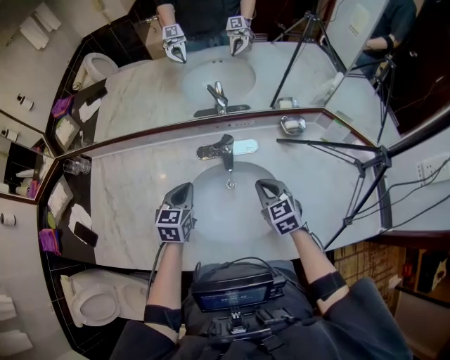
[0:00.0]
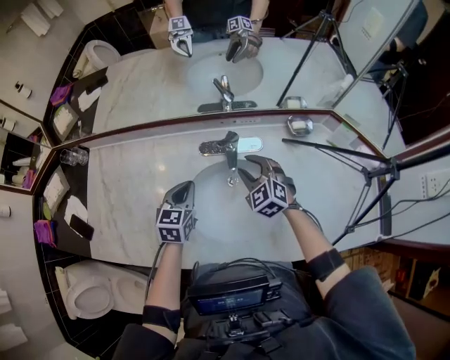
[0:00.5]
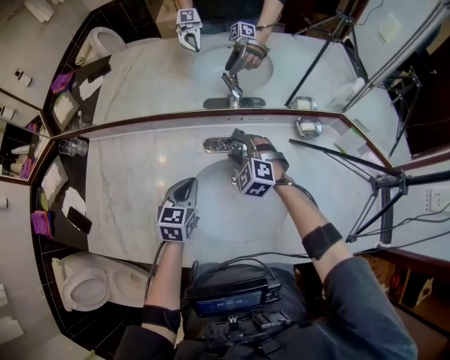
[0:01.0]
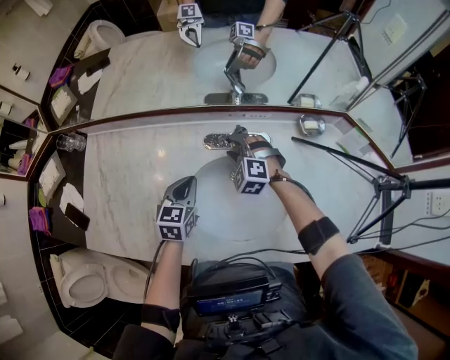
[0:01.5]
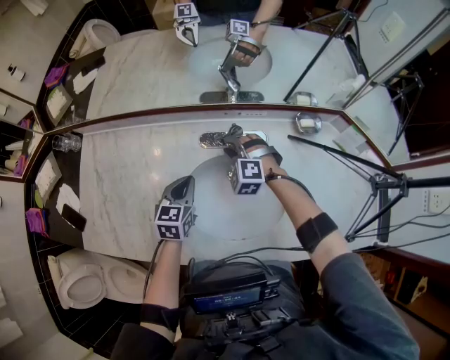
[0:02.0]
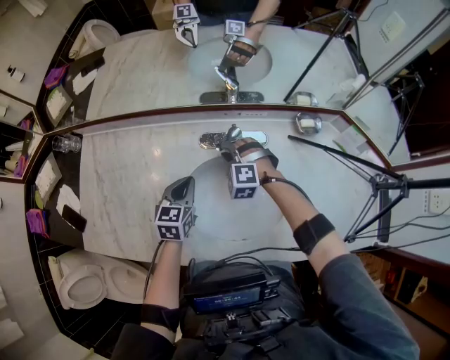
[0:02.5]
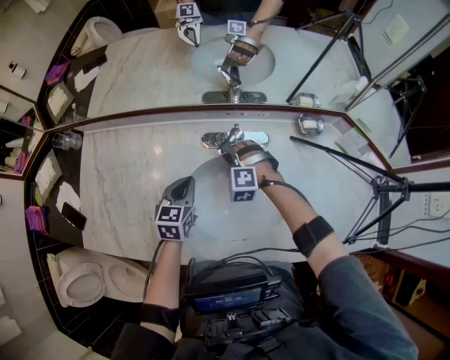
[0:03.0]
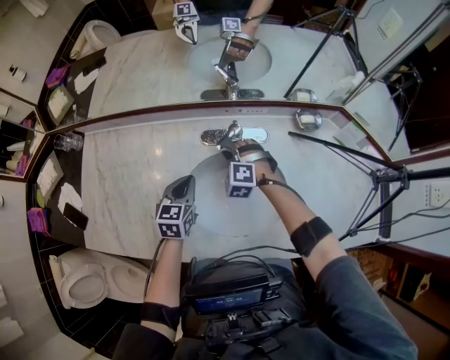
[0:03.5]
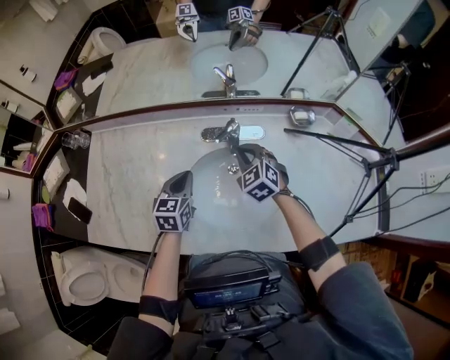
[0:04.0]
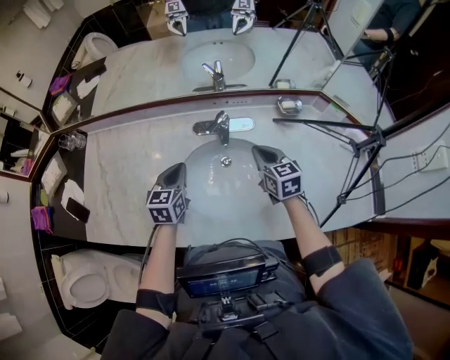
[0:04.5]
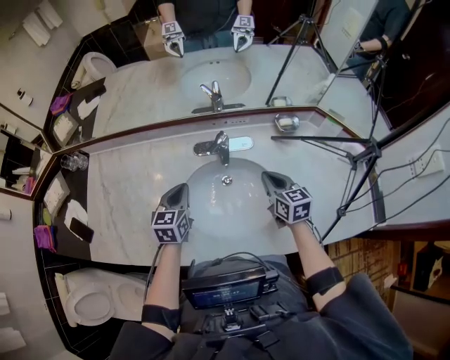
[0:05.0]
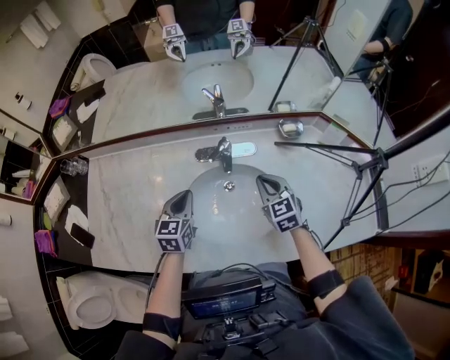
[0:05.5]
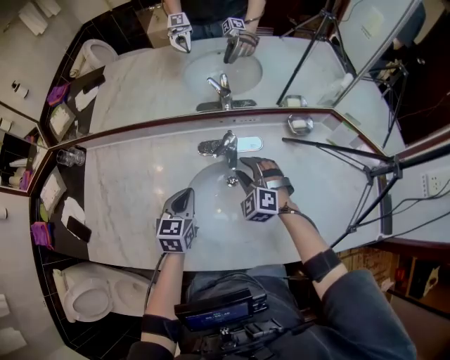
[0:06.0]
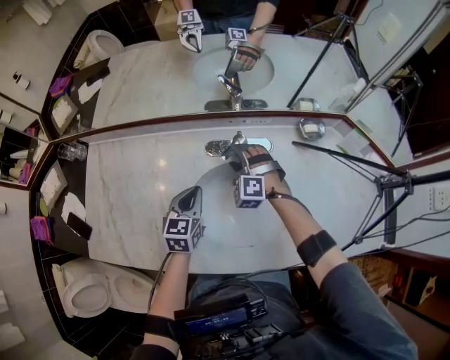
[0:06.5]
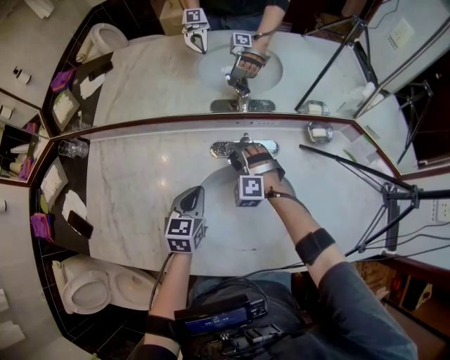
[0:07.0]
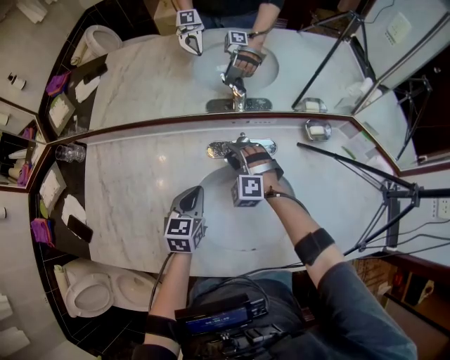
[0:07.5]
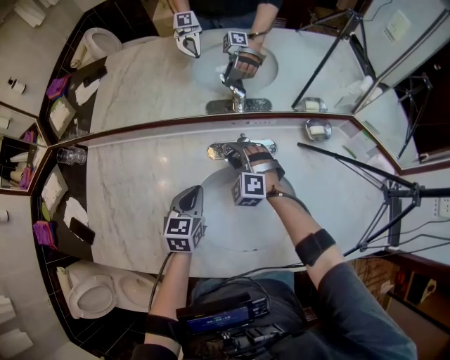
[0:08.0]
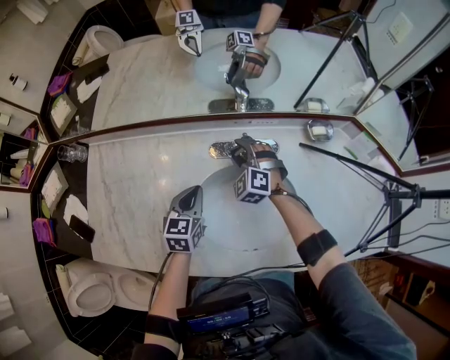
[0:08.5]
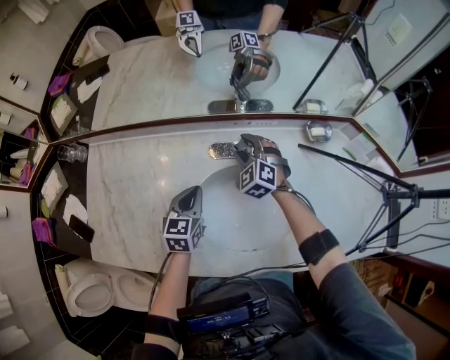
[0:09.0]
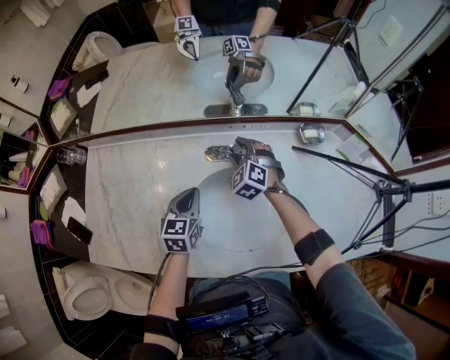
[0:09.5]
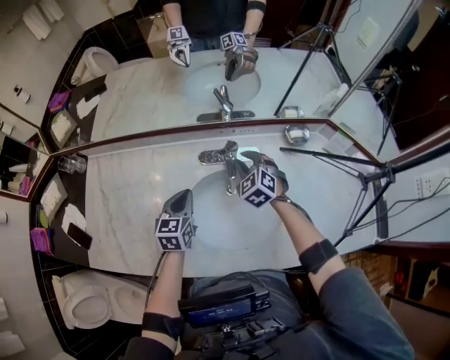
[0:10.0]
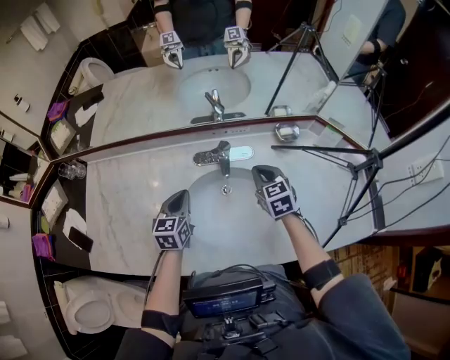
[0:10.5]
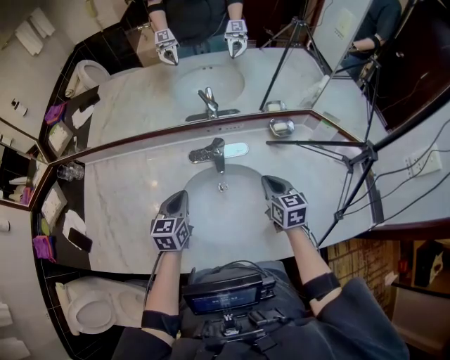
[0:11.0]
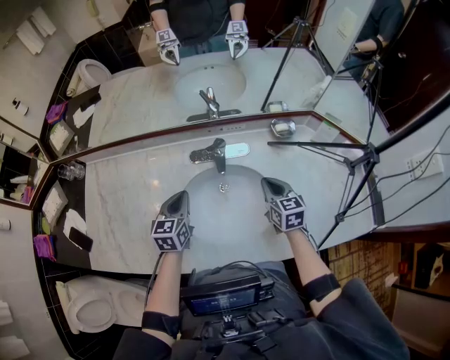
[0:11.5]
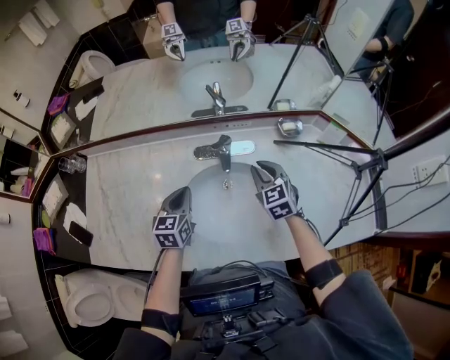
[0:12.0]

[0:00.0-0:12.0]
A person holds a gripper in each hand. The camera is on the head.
0:00.0 to 0:02.0: The right gripper is displaced forward and to the left by roughly 20 cm, rolls counterclockwise, seen from behind, by some 60 degrees, and opens.
0:02.0 to 0:04.0: The right gripper heads backward and upward, covering about 10 cm, turns by some 40 degrees, and closes up.
0:04.0 to 0:06.0: The right gripper goes to the right and returns, about 10 cm each way, turns by about 20 degrees, and opens its fingers.
0:06.0 to 0:08.0: The right gripper goes roughly 10 cm forward and to the left; the left gripper moves roughly 5 cm.
0:08.0 to 0:10.0: The right gripper shifts about 10 cm to the right and upward, turns by approximately 30 degrees, and closes.
0:10.0 to 0:12.0: The right gripper travels to the right and backward by roughly 10 cm, and turns by roughly 20 degrees.

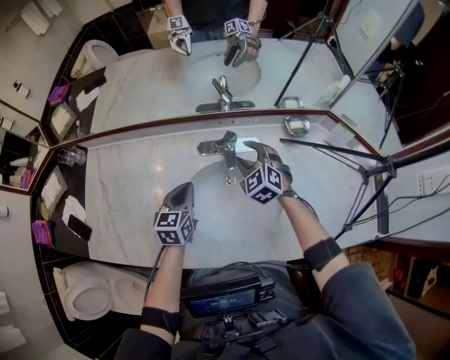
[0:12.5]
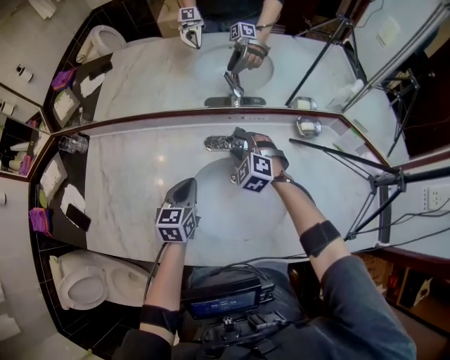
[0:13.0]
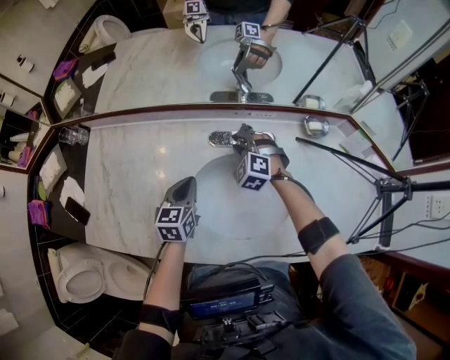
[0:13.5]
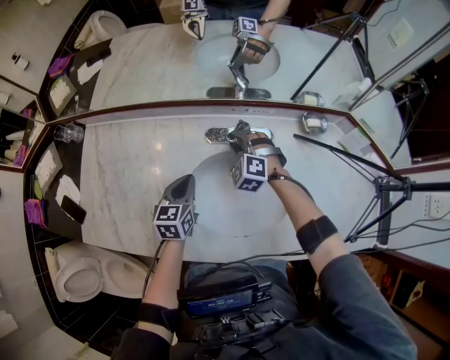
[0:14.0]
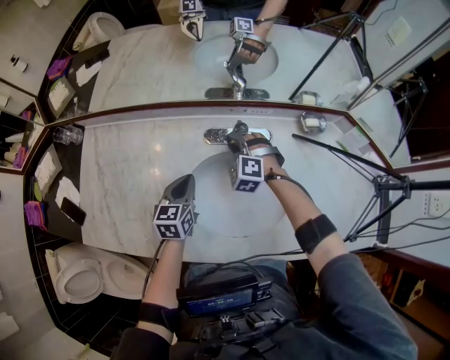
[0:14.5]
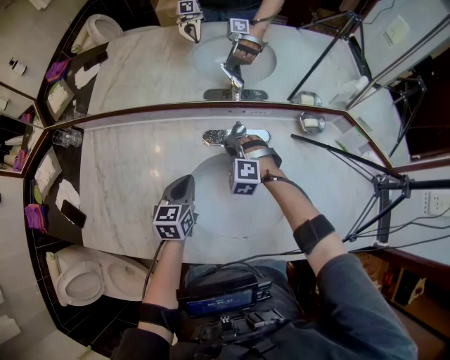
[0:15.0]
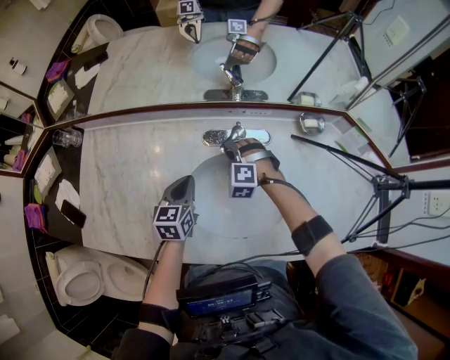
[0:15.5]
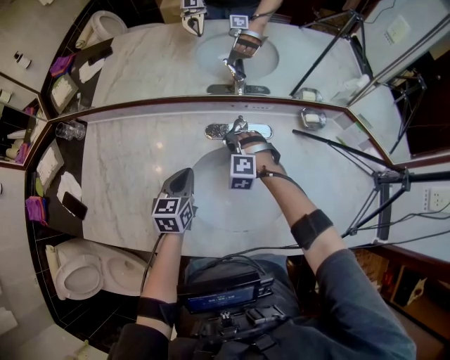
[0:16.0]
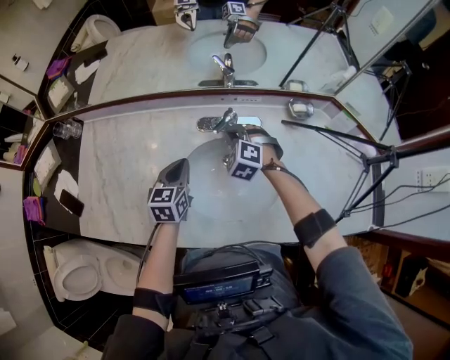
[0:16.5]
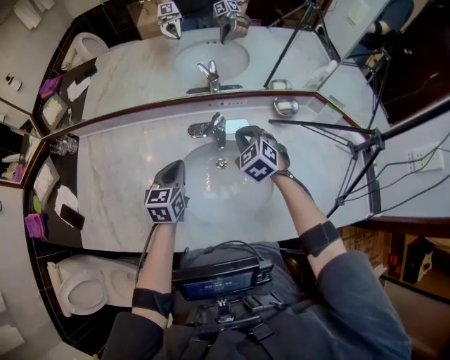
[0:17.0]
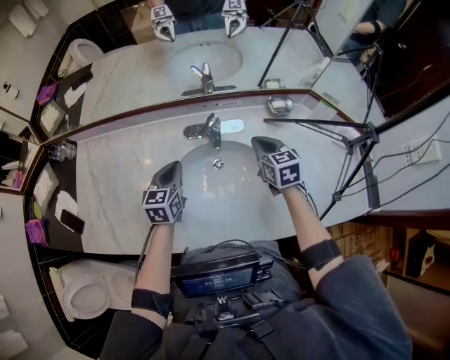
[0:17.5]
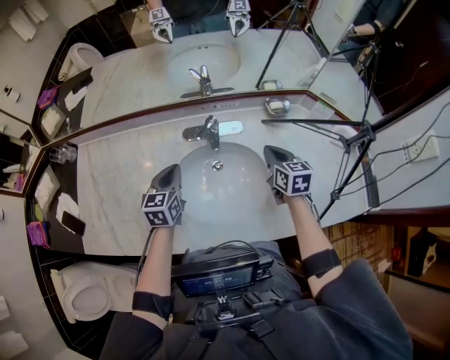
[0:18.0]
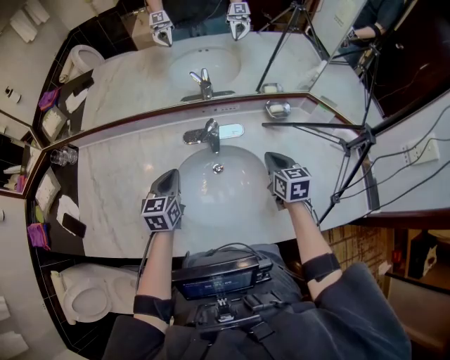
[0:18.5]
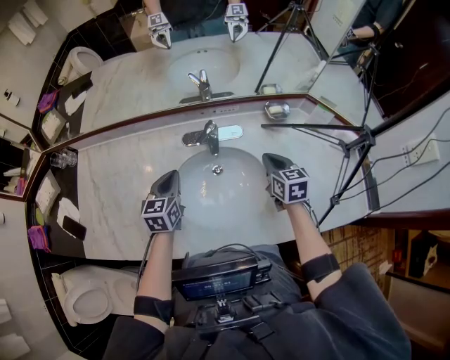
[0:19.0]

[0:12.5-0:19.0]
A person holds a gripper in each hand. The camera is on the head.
0:12.5 to 0:14.5: The right gripper heads downward and to the left, covering some 10 cm, changes its angle by some 30 degrees, and closes up.
0:14.5 to 0:17.0: The left gripper ends up about 5 cm from where it was. The right gripper travels to the right, upward and backward by some 15 cm, rotates approximately 30 degrees, and closes up.
0:17.0 to 0:19.0: The right gripper moves to the right and backward, approximately 15 cm, and rotates around the line of its fingers by approximately 50 degrees, clockwise from behind.

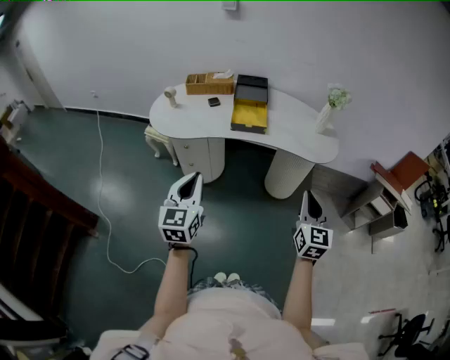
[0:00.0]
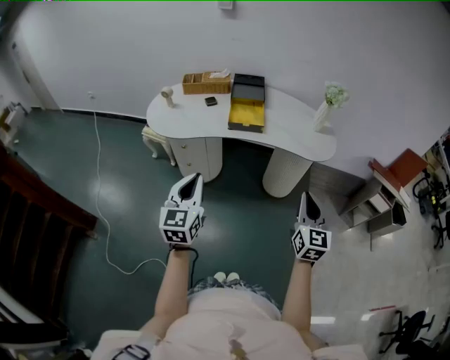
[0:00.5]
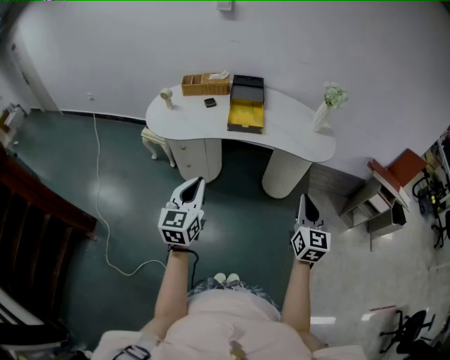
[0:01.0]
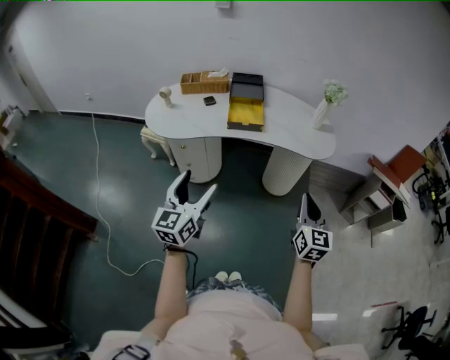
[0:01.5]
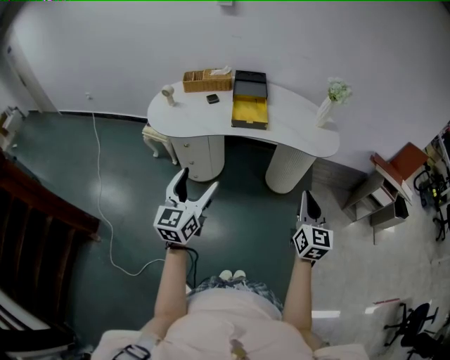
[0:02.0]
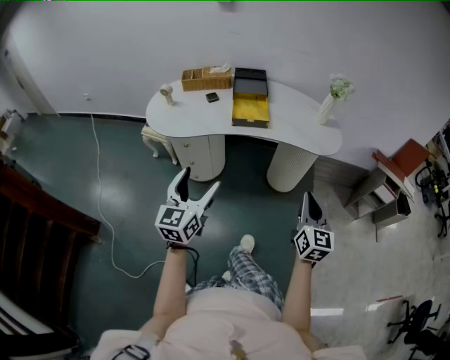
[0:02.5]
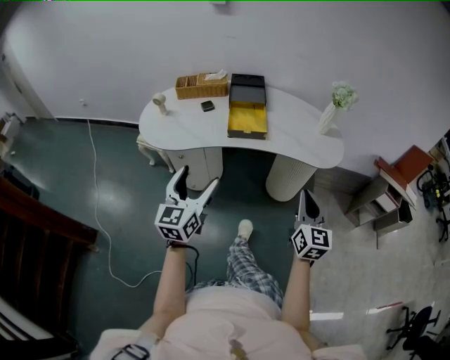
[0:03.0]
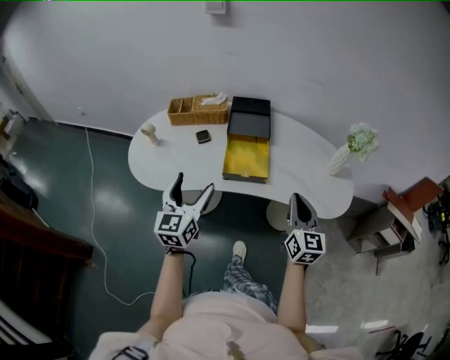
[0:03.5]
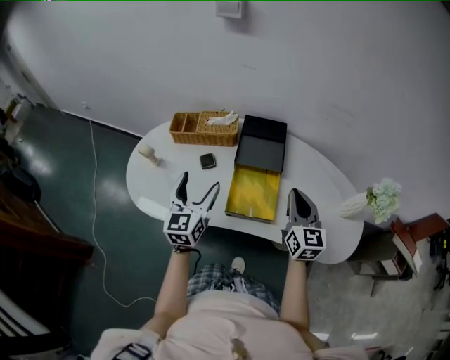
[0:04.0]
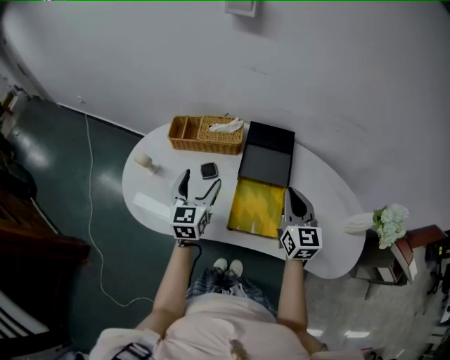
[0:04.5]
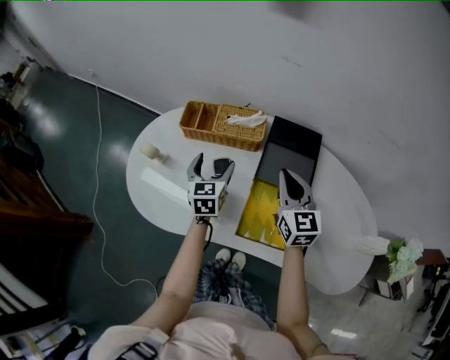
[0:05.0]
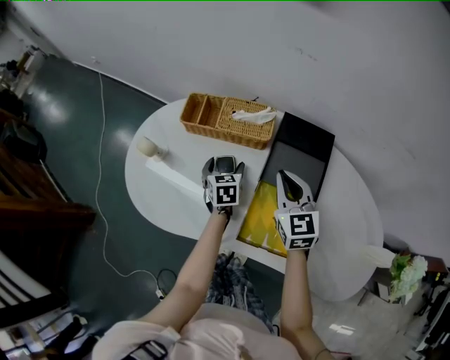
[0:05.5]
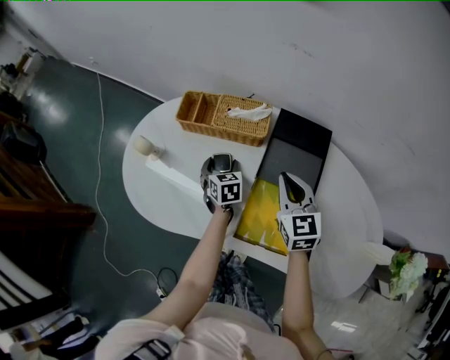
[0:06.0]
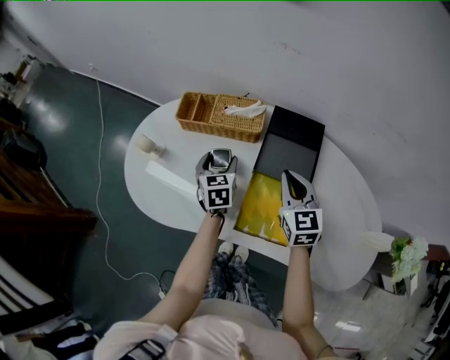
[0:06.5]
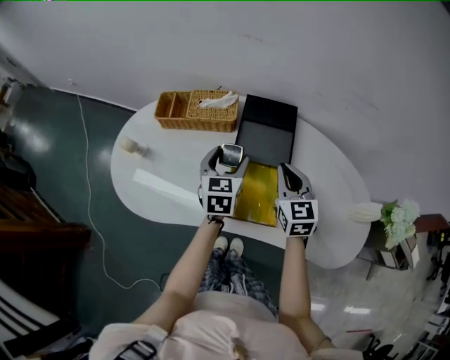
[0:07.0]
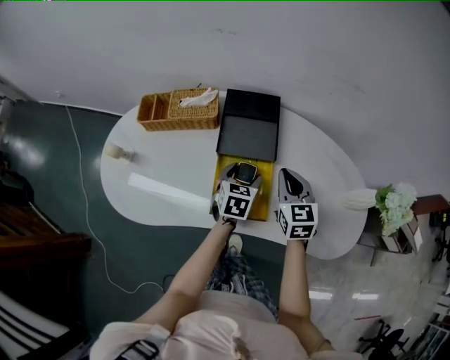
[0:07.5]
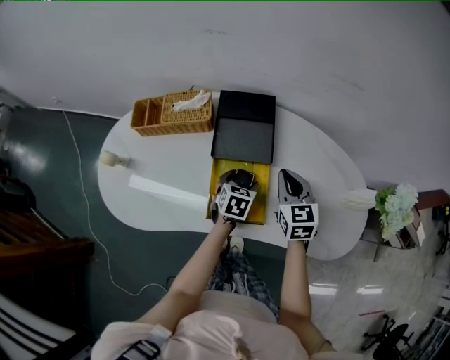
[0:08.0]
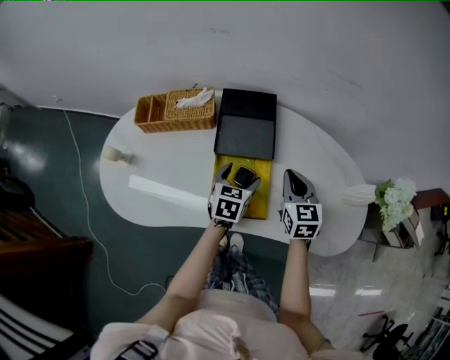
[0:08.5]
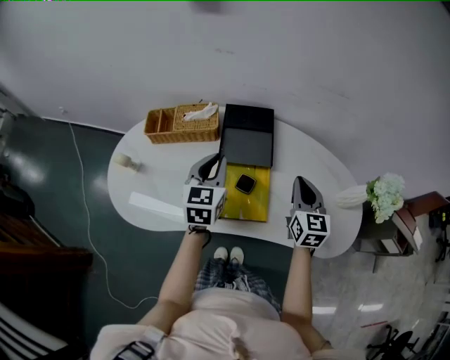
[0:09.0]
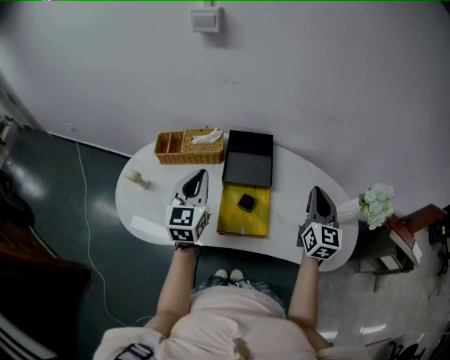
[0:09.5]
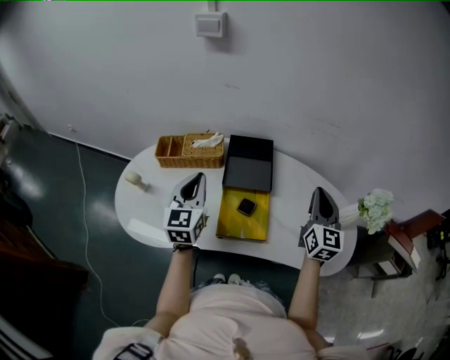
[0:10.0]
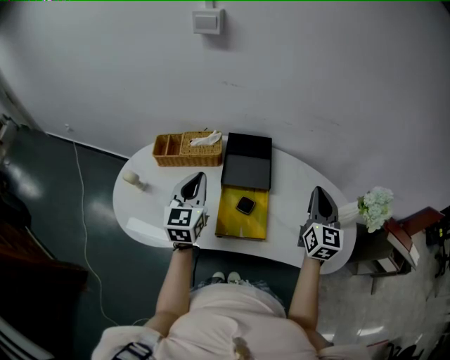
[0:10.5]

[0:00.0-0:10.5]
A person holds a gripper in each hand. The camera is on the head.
0:00.0 to 0:02.0: The left gripper opens up.
0:02.0 to 0:04.0: Both grippers are carried forward, roughly 50 cm.
0:04.0 to 0:06.5: The left gripper is displaced forward and downward by some 25 cm, and turns by roughly 30 degrees; the right gripper is displaced forward, downward and to the left by about 20 cm, and changes its angle by roughly 20 degrees.
0:06.5 to 0:08.5: The left gripper swings up and down, about 15 cm each way, with 2 reversals, and rotates about 30 degrees. Meanwhile the right gripper moves some 15 cm.
0:08.5 to 0:10.5: The left gripper is displaced upward and to the left by roughly 25 cm, angles its fingers upward, by approximately 30 degrees, and closes, while the right gripper travels upward and to the right by some 15 cm, and turns by some 30 degrees.
